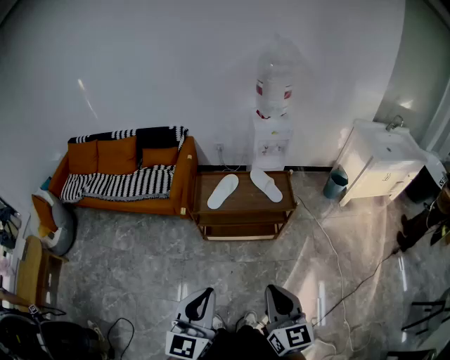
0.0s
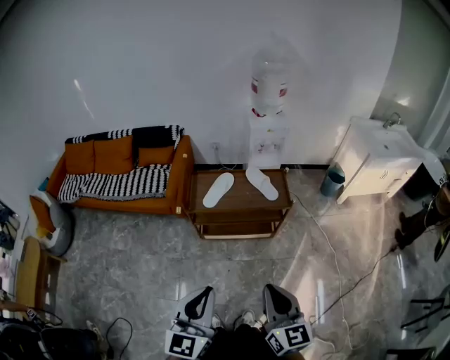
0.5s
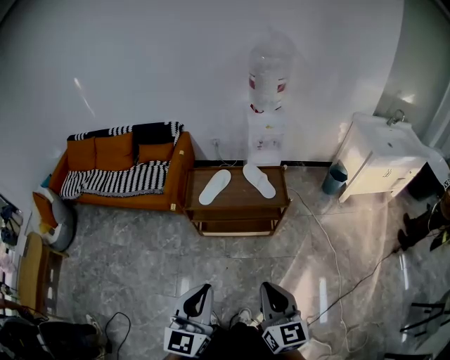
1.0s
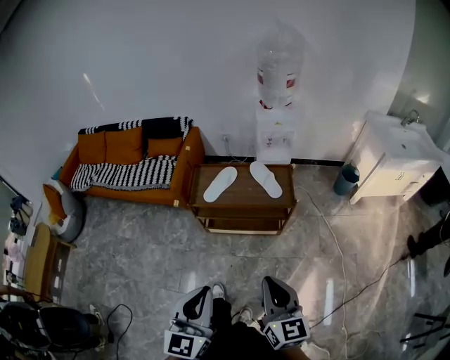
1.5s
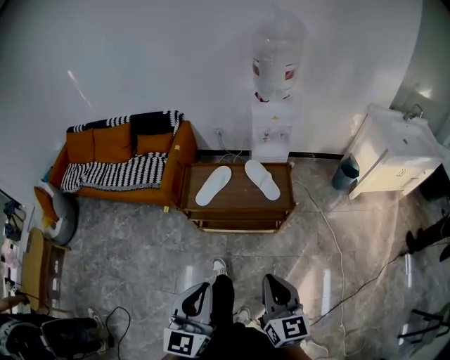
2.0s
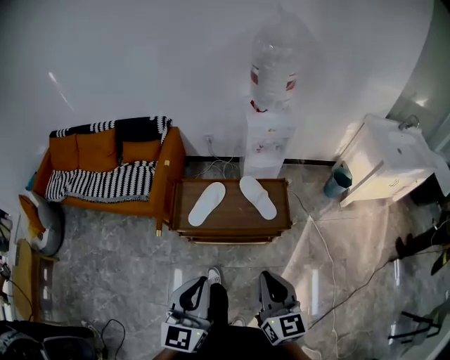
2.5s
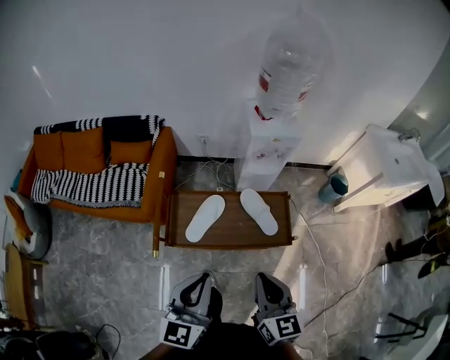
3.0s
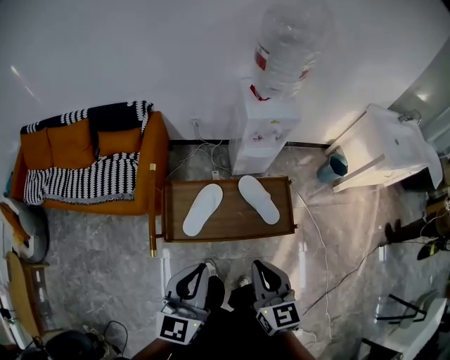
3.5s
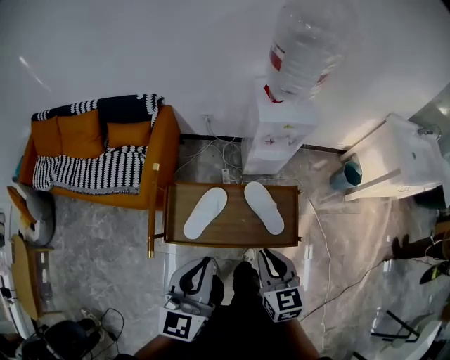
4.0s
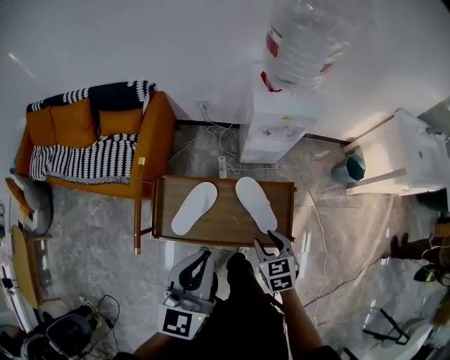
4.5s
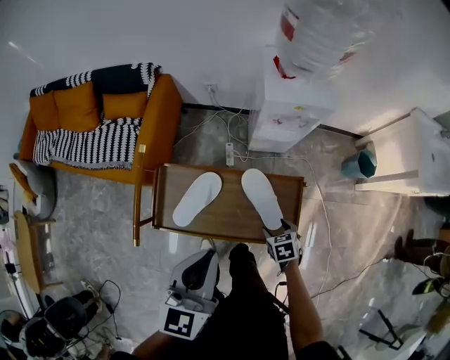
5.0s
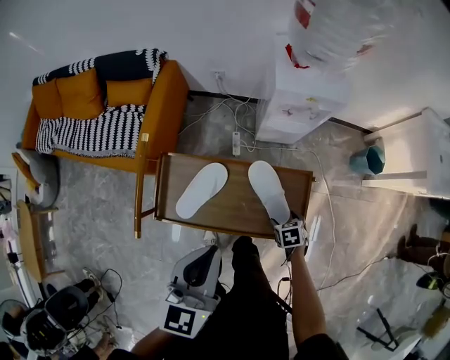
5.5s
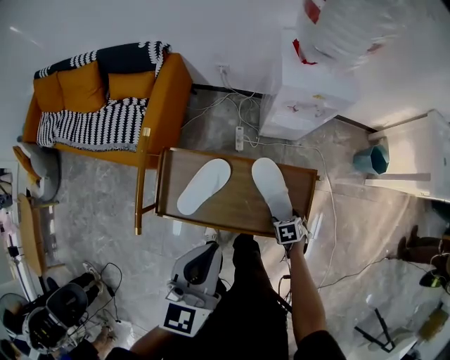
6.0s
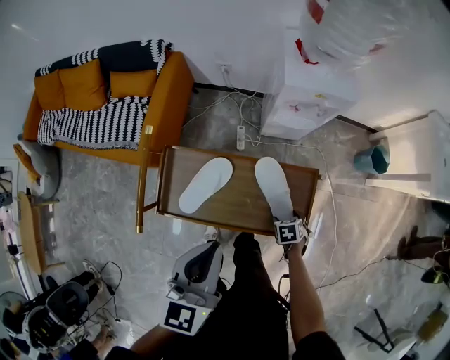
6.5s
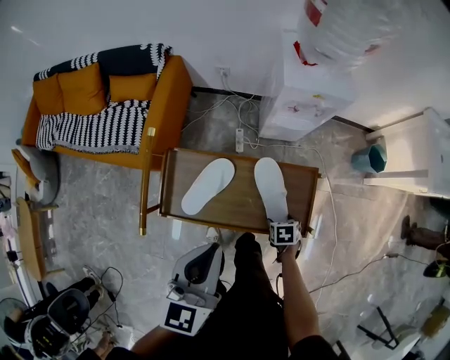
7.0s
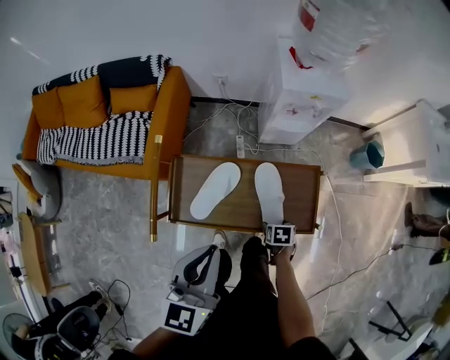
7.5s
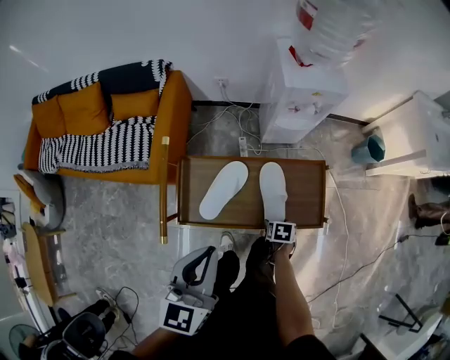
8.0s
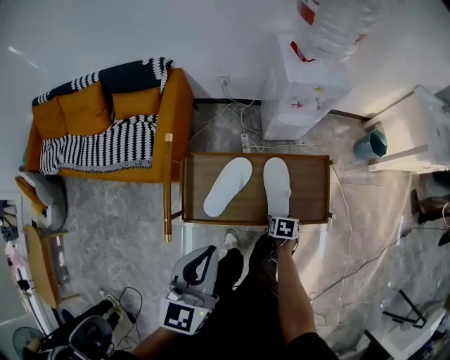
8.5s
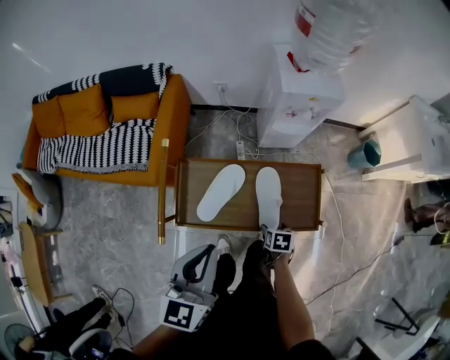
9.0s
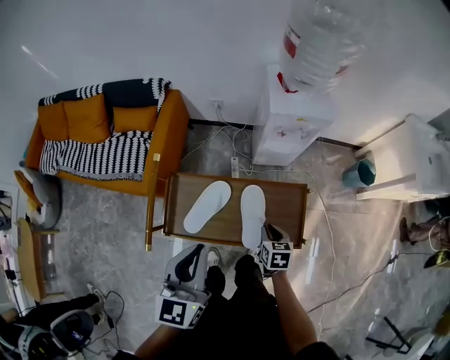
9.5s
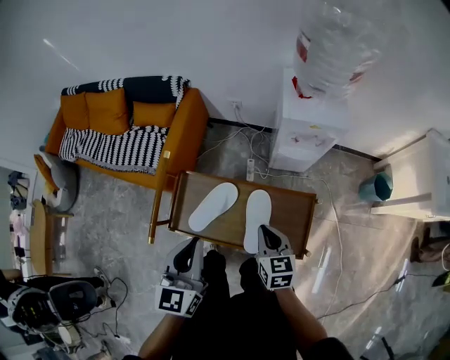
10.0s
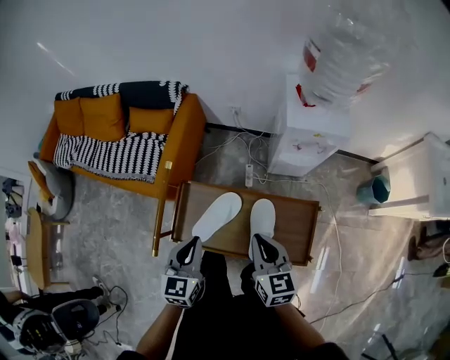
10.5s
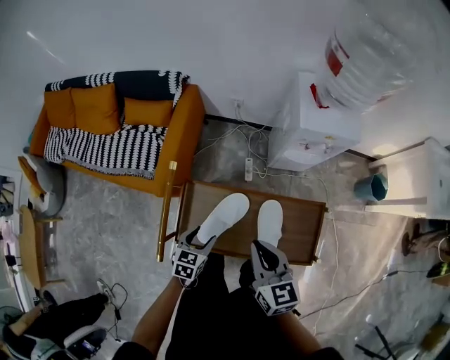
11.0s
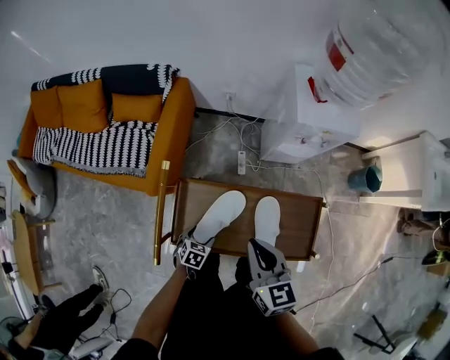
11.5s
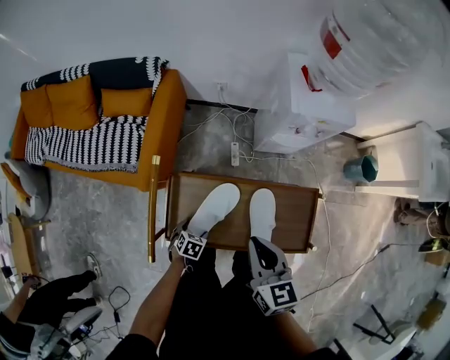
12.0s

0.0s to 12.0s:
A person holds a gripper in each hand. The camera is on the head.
0.0s to 2.0s: The left gripper heads forward and to the right, covering some 15 cm. Meanwhile the right gripper moves forward, to the right and downward, approximately 15 cm.
2.0s to 4.0s: Both grippers move forward, roughly 40 cm.
4.0s to 6.0s: The right gripper shifts about 35 cm downward, tips its fingers downward by some 50 degrees, and opens its fingers. The left gripper moves some 10 cm.
6.0s to 8.0s: The right gripper moves roughly 15 cm, and changes its angle by approximately 30 degrees. The left gripper ends up some 10 cm from where it was.
8.0s to 10.0s: The left gripper shifts by approximately 10 cm, while the right gripper shifts about 25 cm upward, points its fingers roughly 40 degrees further upward, and closes its fingers.
10.0s to 12.0s: The left gripper is displaced downward by approximately 40 cm, angles its fingers downward, by roughly 60 degrees, and opens up. The right gripper goes approximately 10 cm to the left and upward.

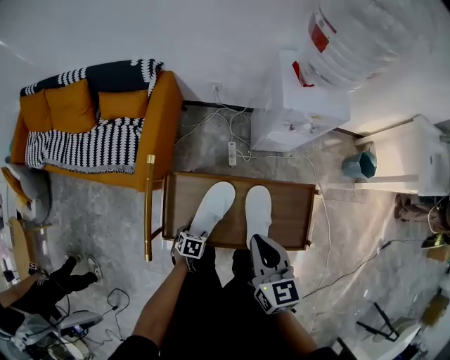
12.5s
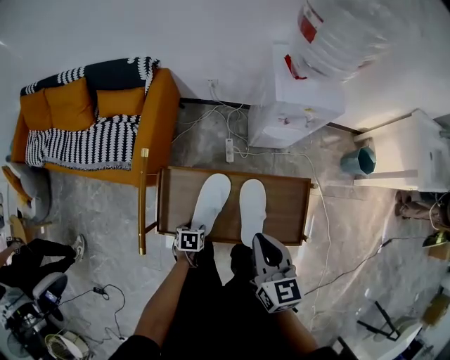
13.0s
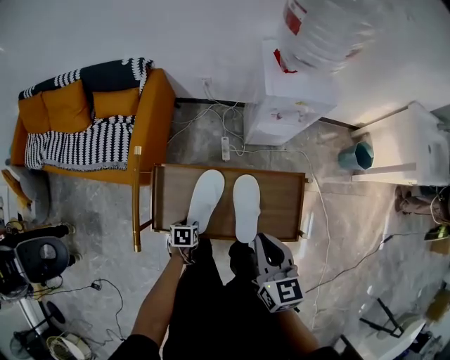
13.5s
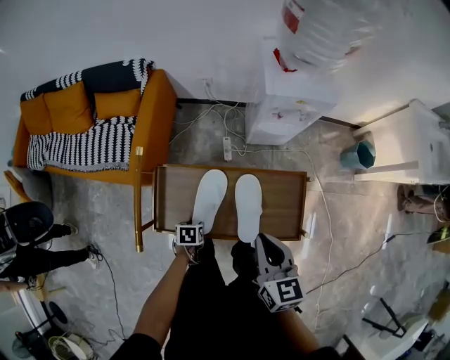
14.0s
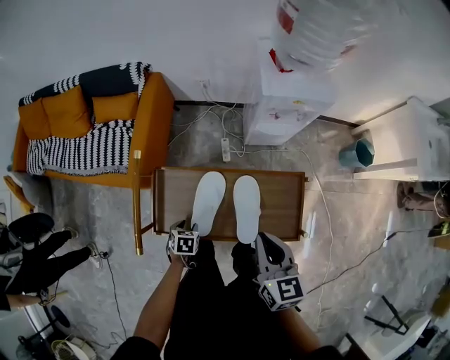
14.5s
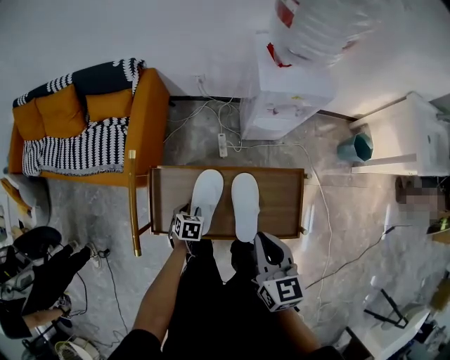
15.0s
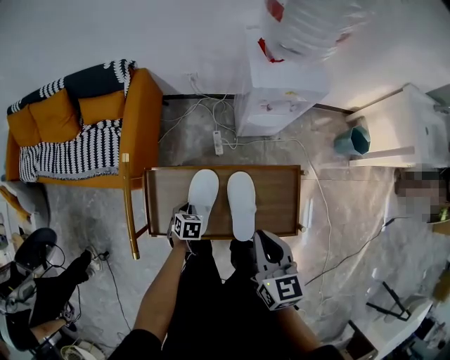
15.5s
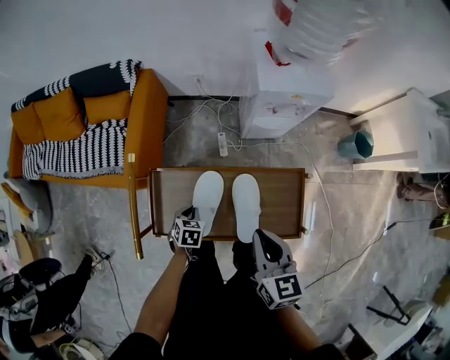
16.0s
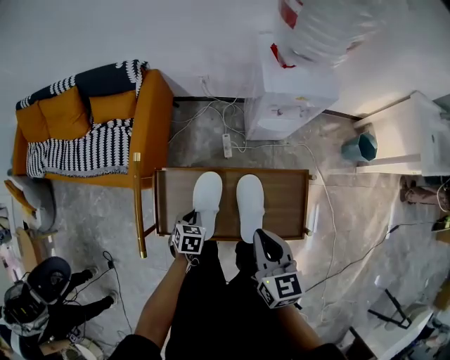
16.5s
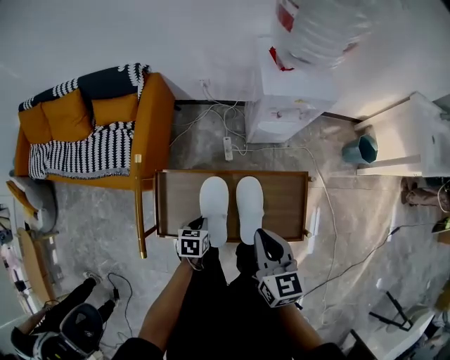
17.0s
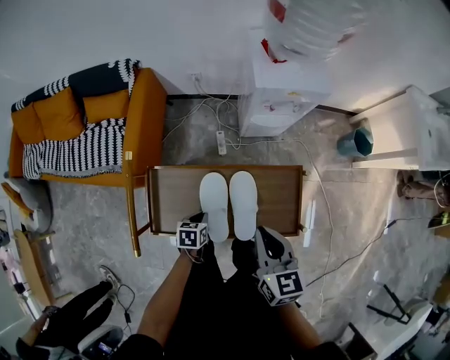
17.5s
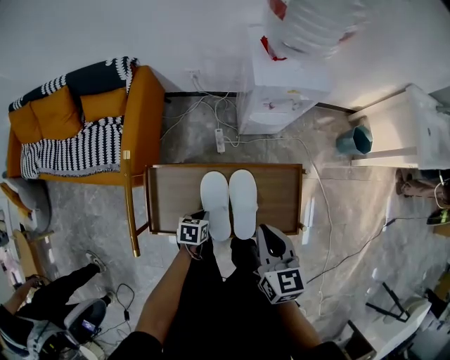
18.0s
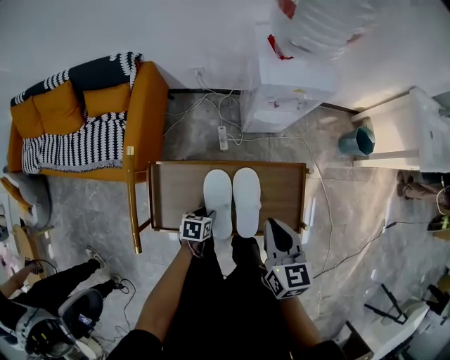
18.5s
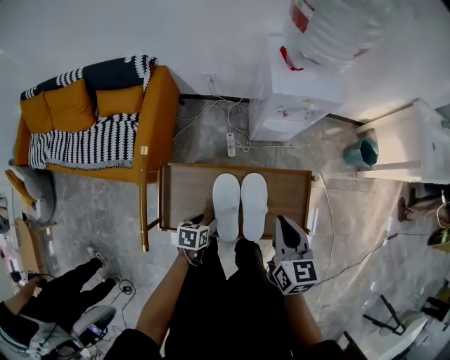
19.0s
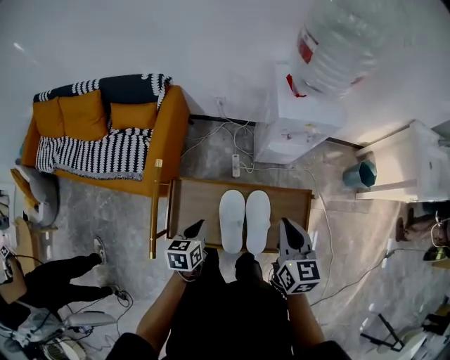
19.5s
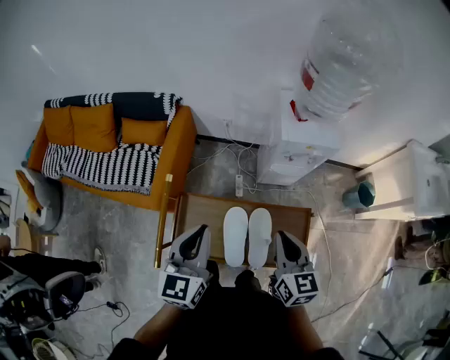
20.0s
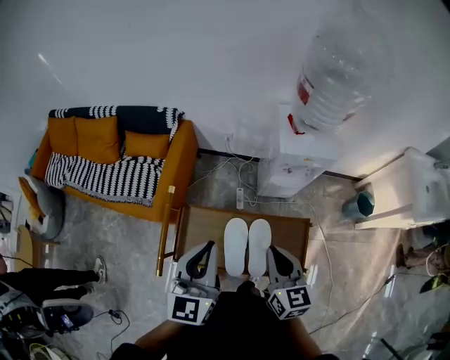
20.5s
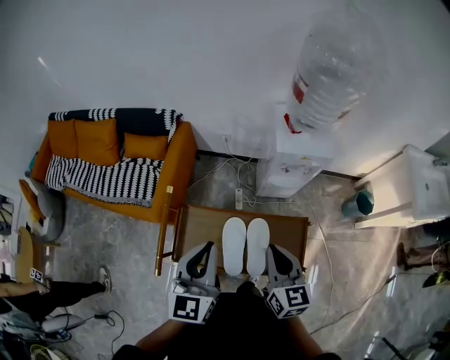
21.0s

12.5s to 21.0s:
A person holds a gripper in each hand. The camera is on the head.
12.5s to 14.5s: The right gripper goes approximately 10 cm to the right.
14.5s to 16.5s: The left gripper goes approximately 5 cm forward, and closes.
16.5s to 19.0s: The left gripper changes its angle by roughly 20 degrees, and opens its fingers.
19.0s to 21.0s: The right gripper moves upward, some 10 cm. The left gripper moves upward, roughly 40 cm, angles its fingers upward, by approximately 50 degrees, and closes up.

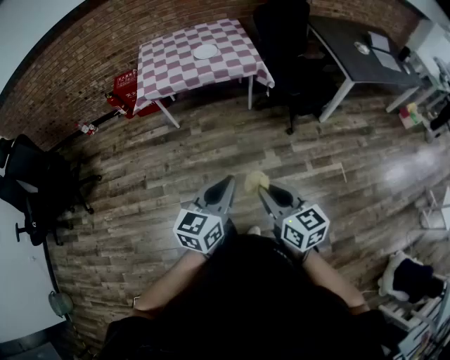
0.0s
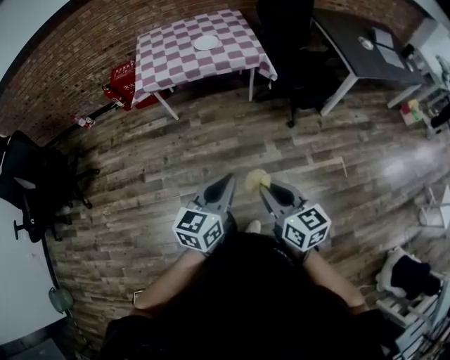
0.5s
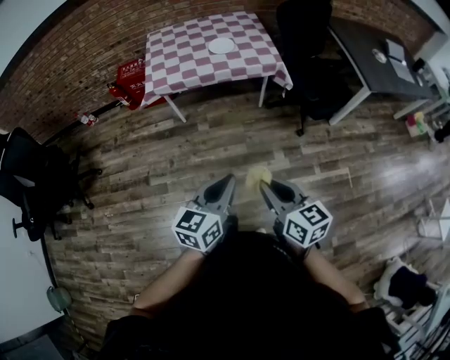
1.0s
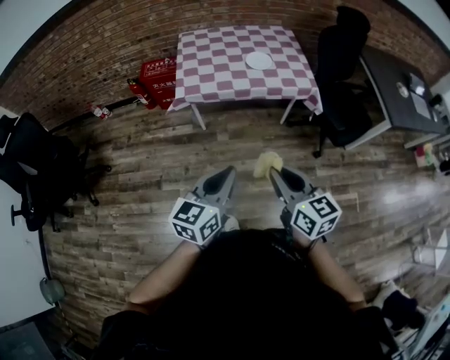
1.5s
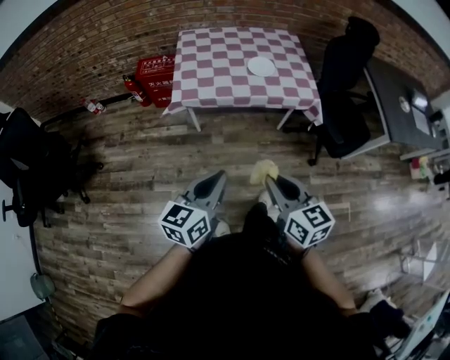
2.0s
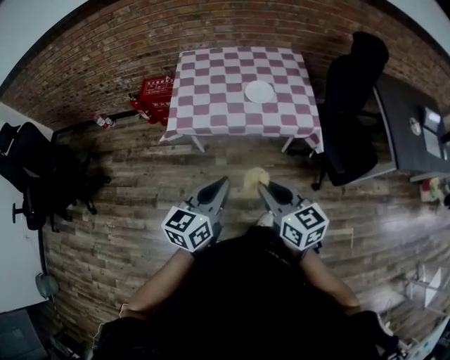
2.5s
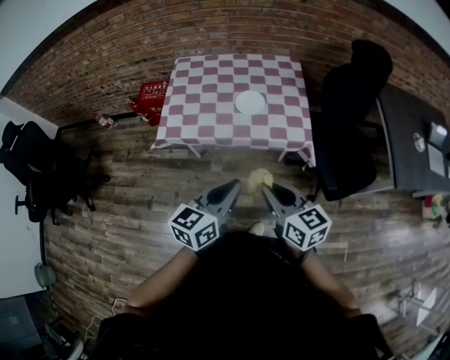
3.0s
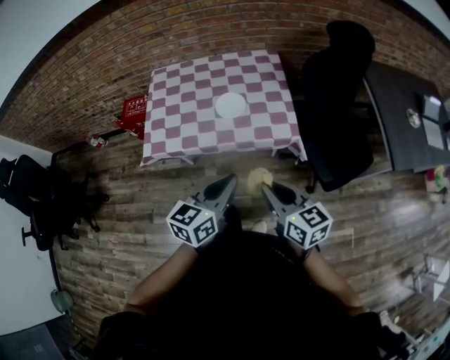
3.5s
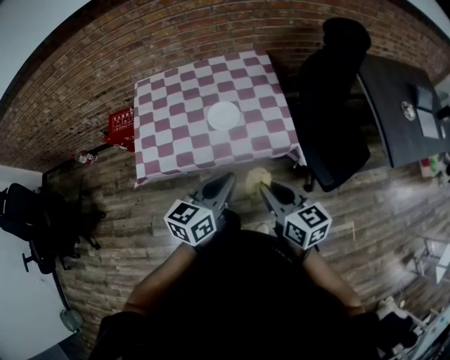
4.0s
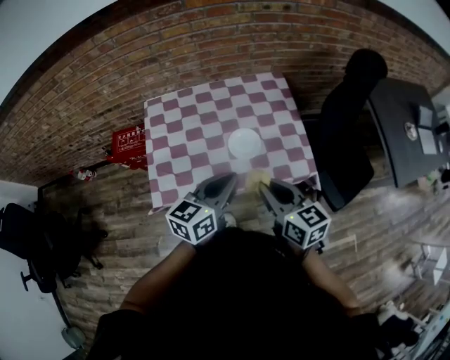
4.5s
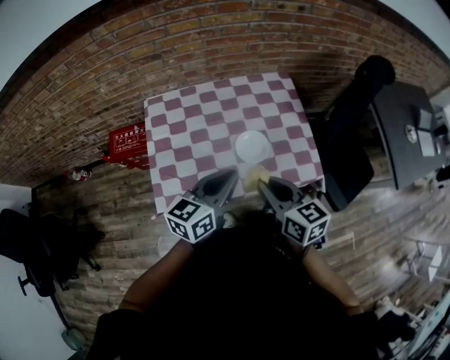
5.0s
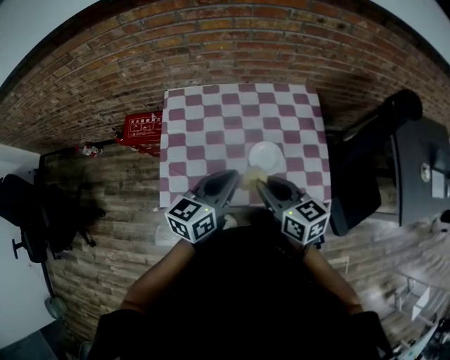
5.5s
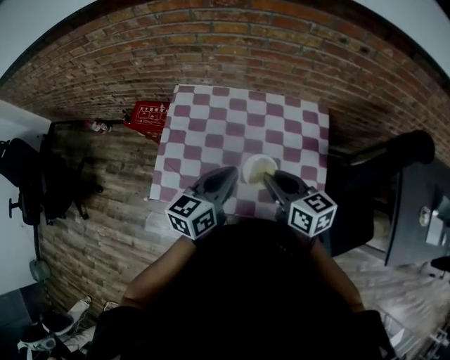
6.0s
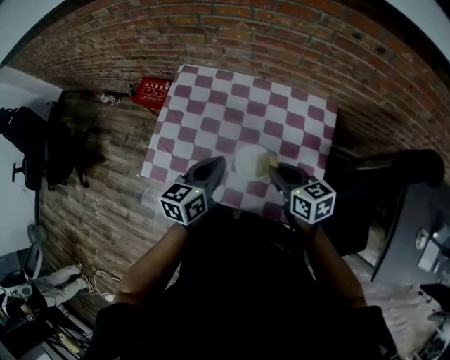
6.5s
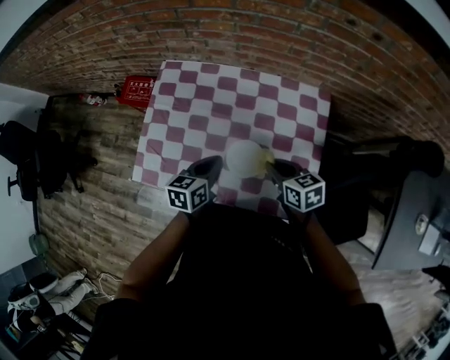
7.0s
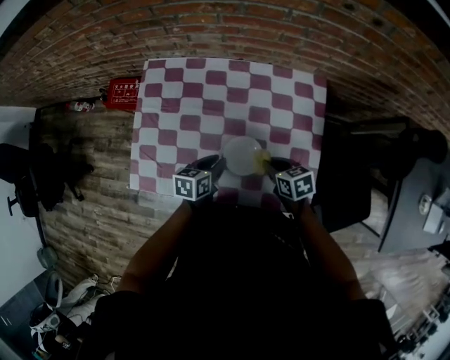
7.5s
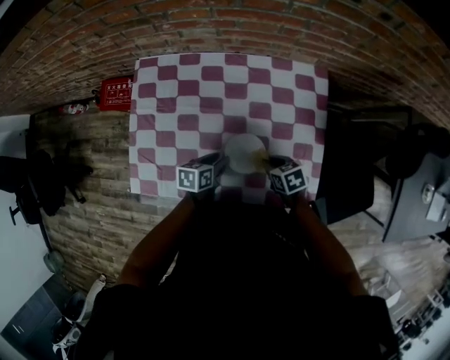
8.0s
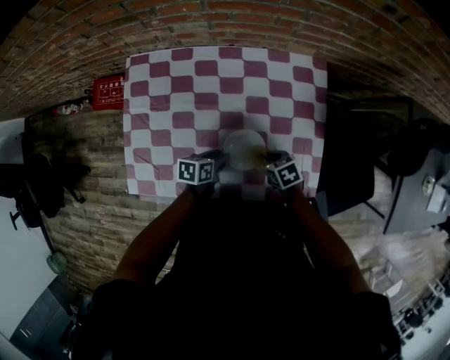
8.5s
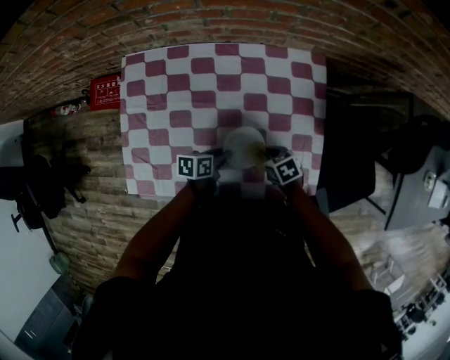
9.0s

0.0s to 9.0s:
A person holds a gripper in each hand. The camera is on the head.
0.0s to 2.0s: The grippers both shift forward and to the left by roughly 35 cm.
2.0s to 4.5s: Both grippers are carried forward, some 40 cm.
4.5s to 7.0s: The left gripper goes roughly 15 cm downward, and changes its angle by approximately 40 degrees, while the right gripper shifts by some 30 cm, and swivels some 30 degrees.
7.0s to 9.0s: The two grippers go approximately 20 cm downward. The right gripper swivels about 30 degrees. The left gripper turns by about 30 degrees, and opens.
